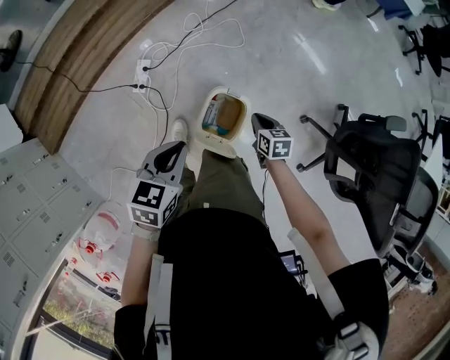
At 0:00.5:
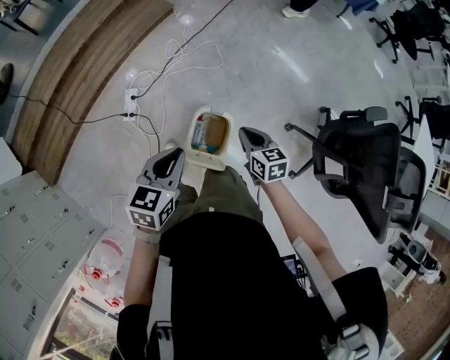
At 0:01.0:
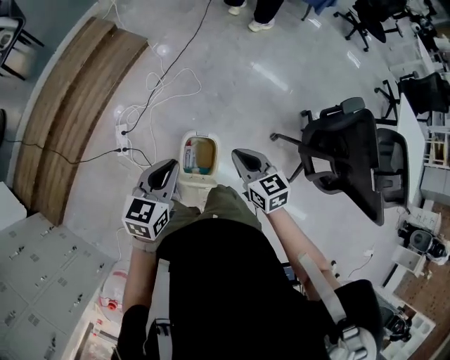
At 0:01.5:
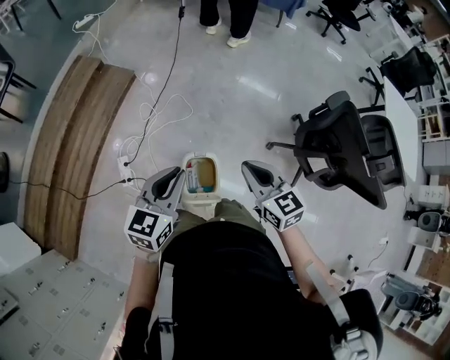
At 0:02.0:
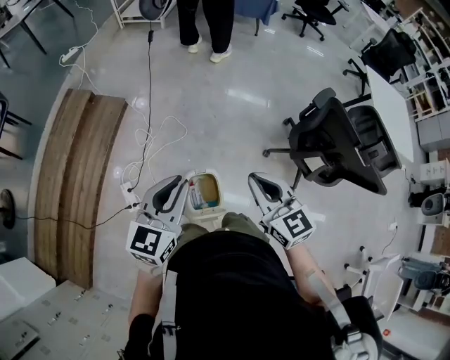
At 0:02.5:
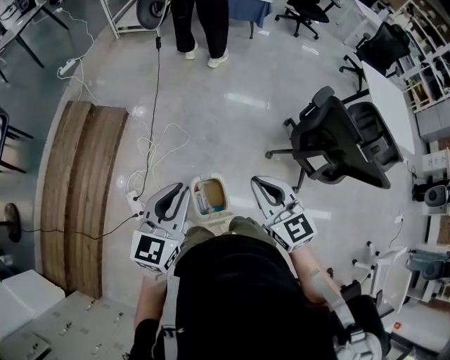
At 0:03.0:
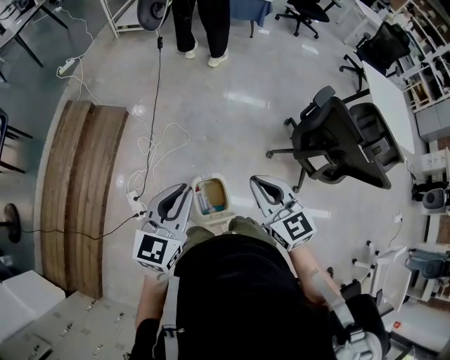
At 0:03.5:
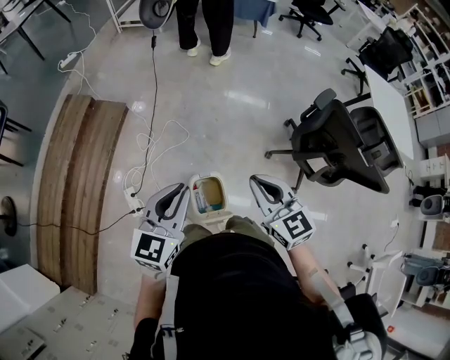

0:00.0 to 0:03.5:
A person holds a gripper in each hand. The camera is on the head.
0:00.0 to 0:02.0: The right gripper moves upward, some 40 cm, and points its fingers some 30 degrees further upward; the left gripper is displaced upward by approximately 25 cm, and rotates some 40 degrees.
0:02.0 to 0:03.5: The grippers stay close to where they were, moving slightly.

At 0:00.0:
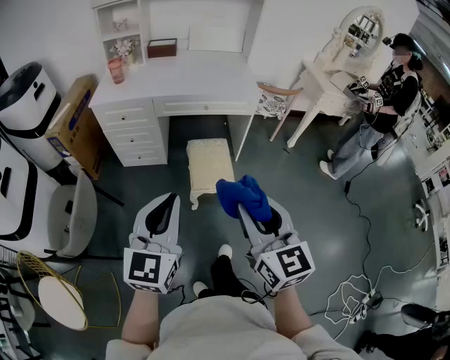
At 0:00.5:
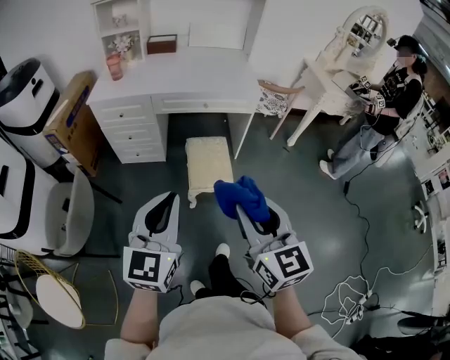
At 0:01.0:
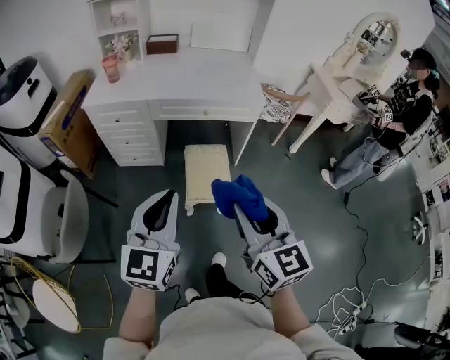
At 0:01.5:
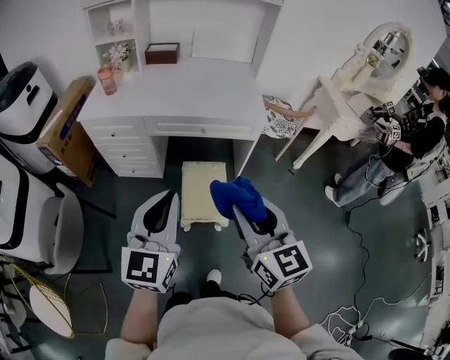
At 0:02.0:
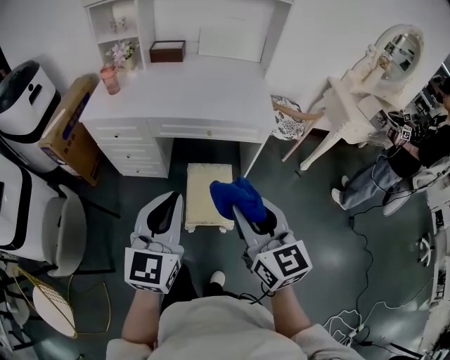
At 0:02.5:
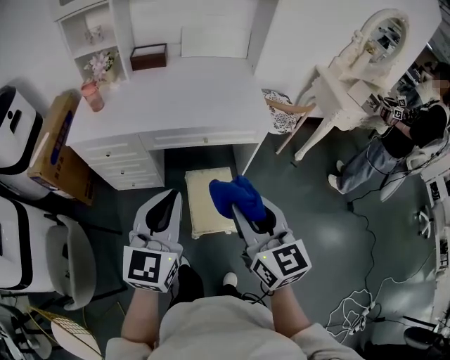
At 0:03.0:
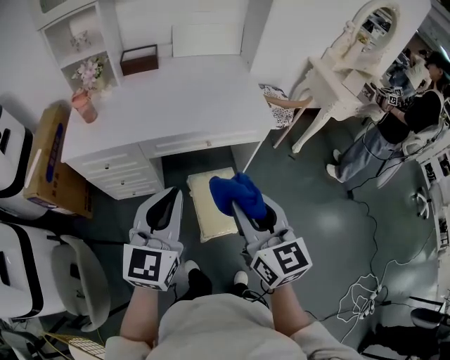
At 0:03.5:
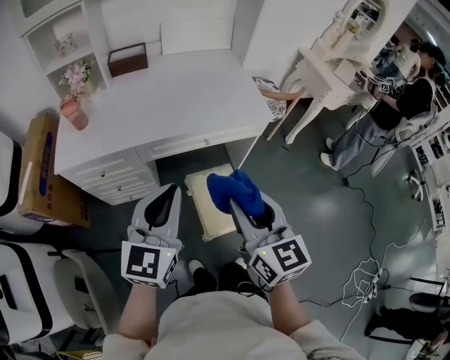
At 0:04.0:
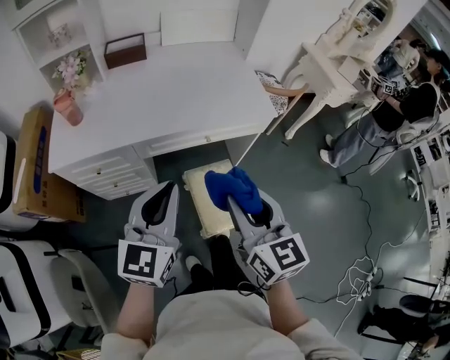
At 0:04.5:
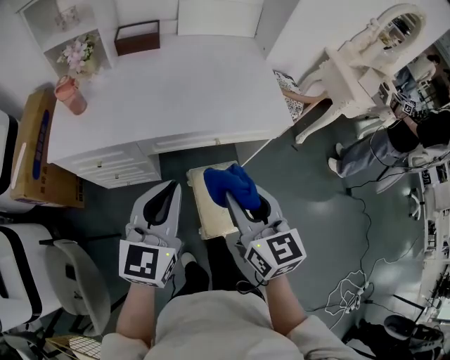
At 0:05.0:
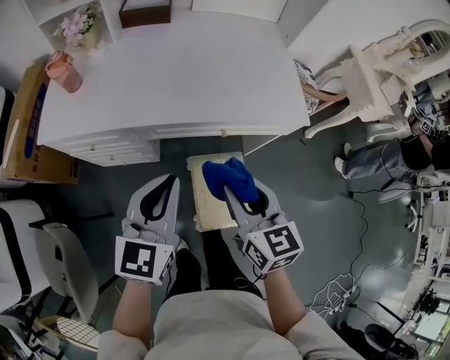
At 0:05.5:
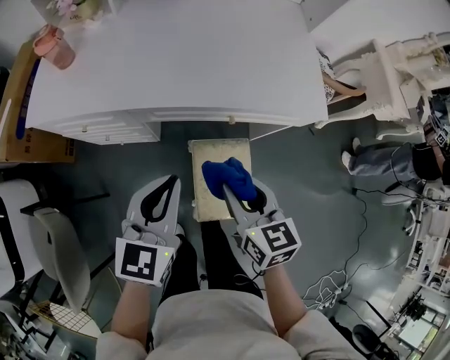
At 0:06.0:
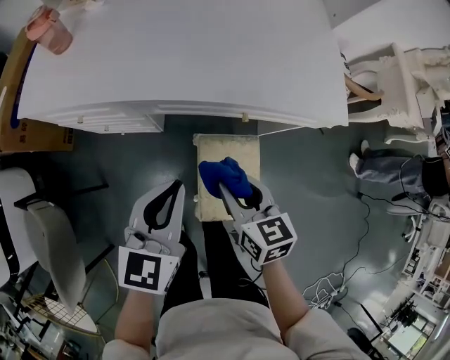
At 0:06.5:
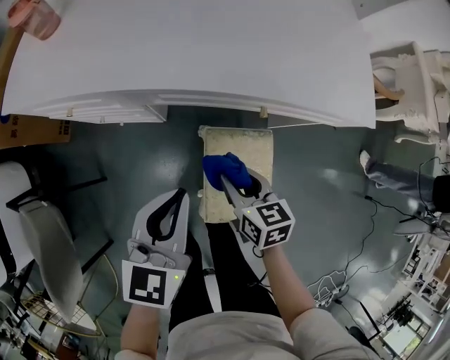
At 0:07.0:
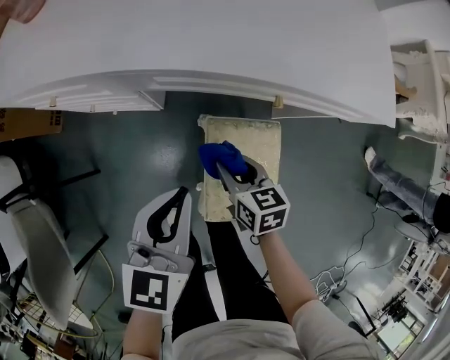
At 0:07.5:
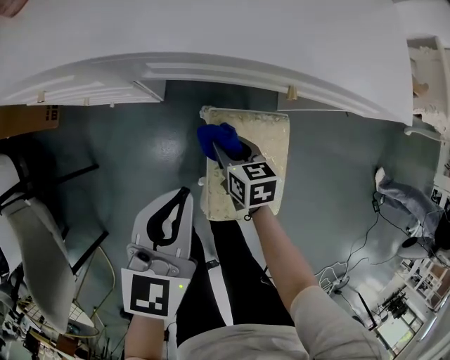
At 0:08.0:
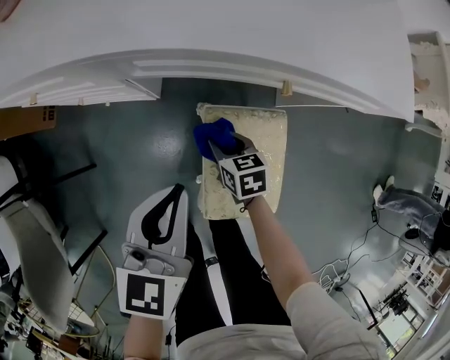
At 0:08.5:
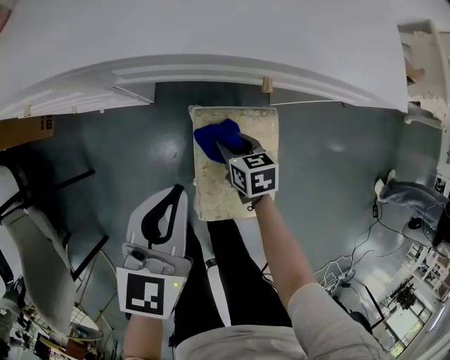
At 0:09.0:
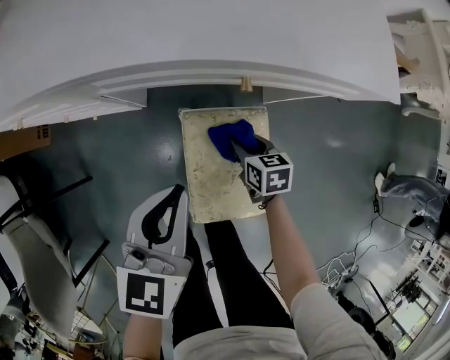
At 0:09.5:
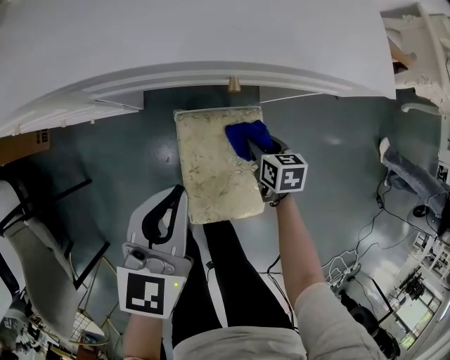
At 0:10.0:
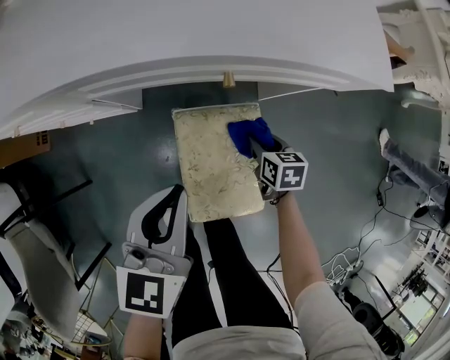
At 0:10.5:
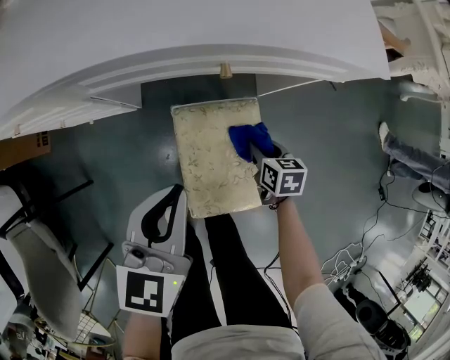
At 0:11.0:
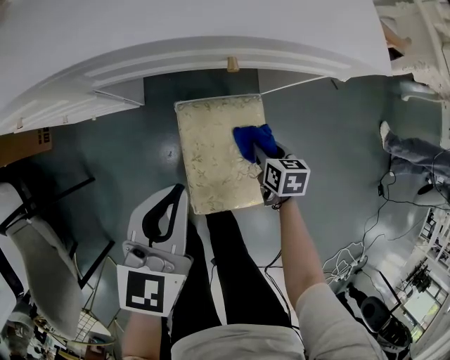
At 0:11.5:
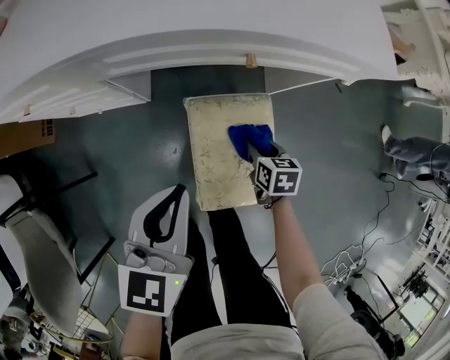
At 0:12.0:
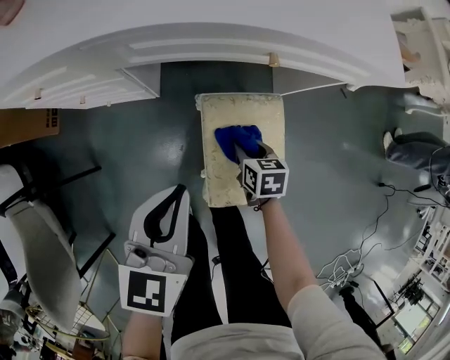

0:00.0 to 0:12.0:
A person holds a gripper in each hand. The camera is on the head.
0:00.0 to 0:02.0: Both grippers move forward, about 25 cm.
0:02.0 to 0:04.0: The two grippers go some 20 cm forward and to the left.
0:04.0 to 0:06.0: Both grippers move downward and forward, some 25 cm. The left gripper changes its angle by some 30 degrees, while the right gripper swivels about 30 degrees.
0:06.0 to 0:08.0: The left gripper is displaced downward by approximately 15 cm, while the right gripper travels downward by some 30 cm.
0:08.0 to 0:10.0: The right gripper shifts approximately 20 cm to the right, while the left gripper heads to the right, covering about 10 cm.
0:10.0 to 0:12.0: The two grippers go approximately 10 cm to the left and backward.

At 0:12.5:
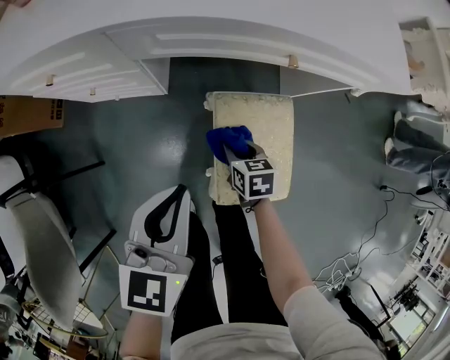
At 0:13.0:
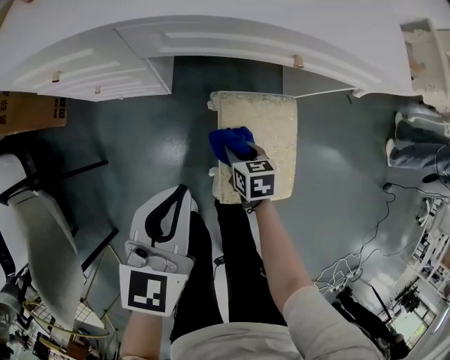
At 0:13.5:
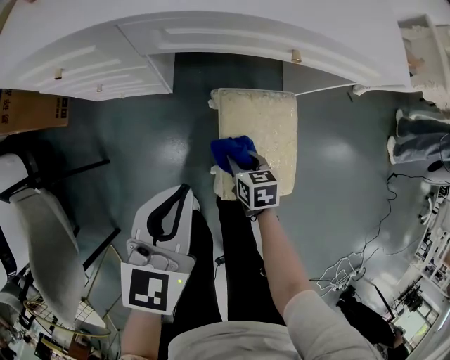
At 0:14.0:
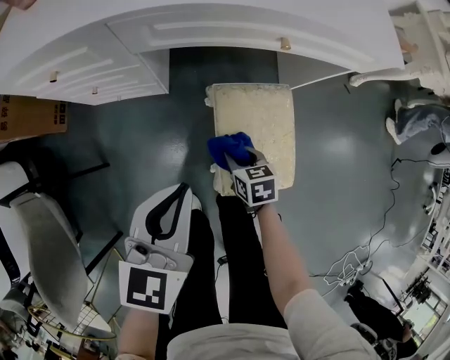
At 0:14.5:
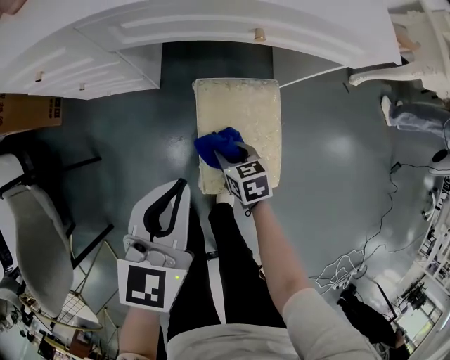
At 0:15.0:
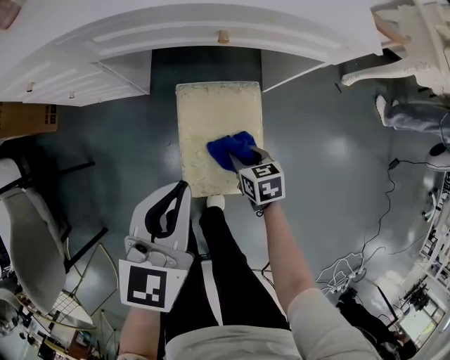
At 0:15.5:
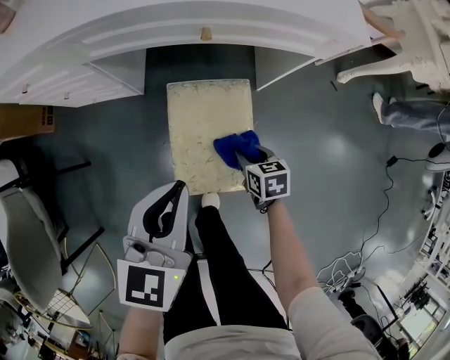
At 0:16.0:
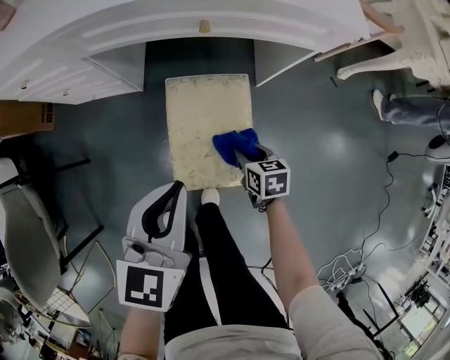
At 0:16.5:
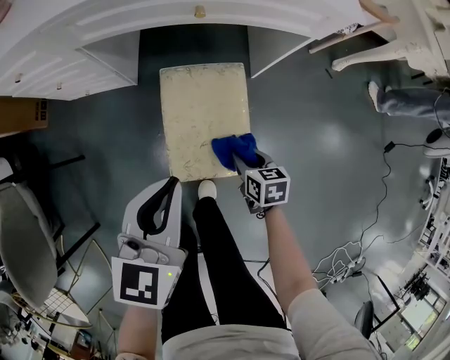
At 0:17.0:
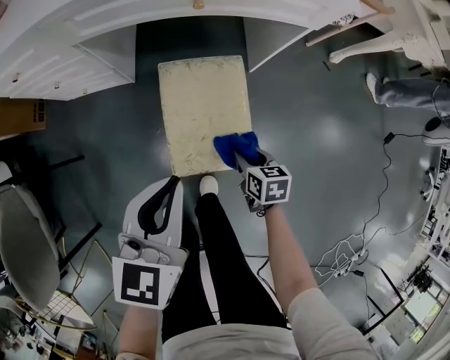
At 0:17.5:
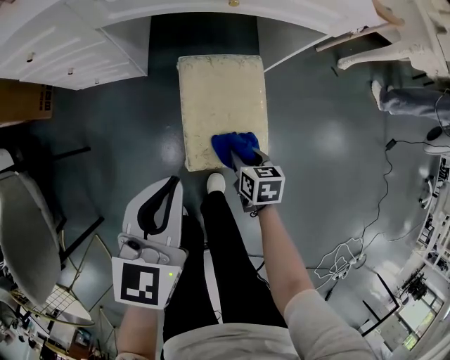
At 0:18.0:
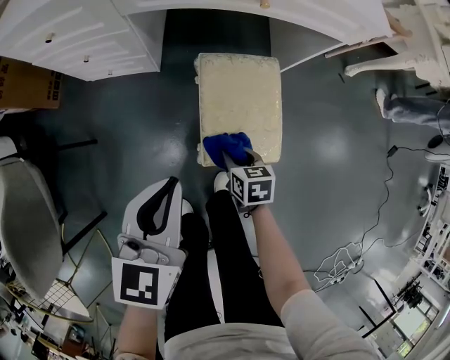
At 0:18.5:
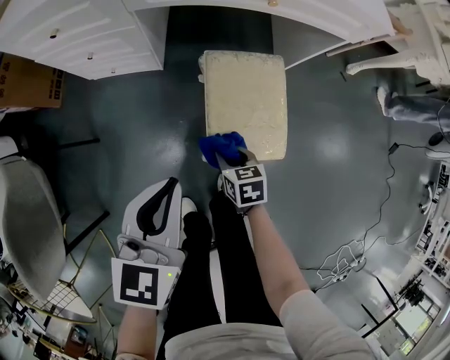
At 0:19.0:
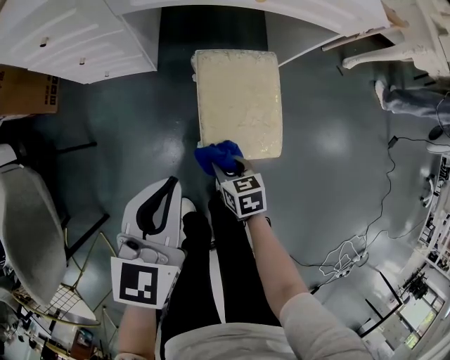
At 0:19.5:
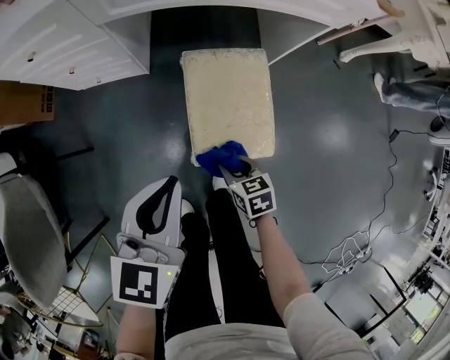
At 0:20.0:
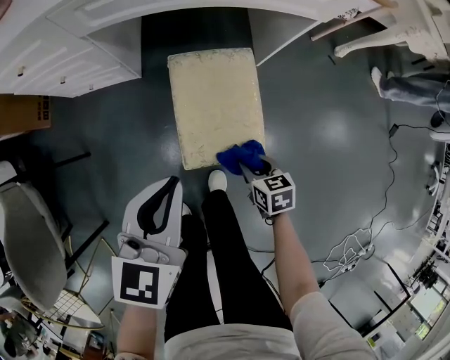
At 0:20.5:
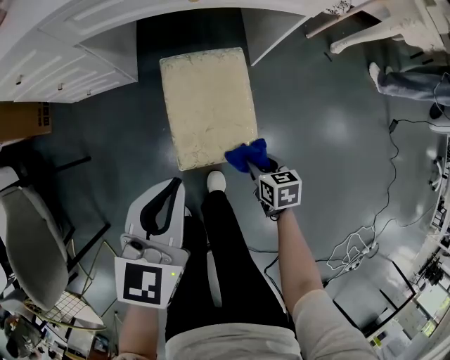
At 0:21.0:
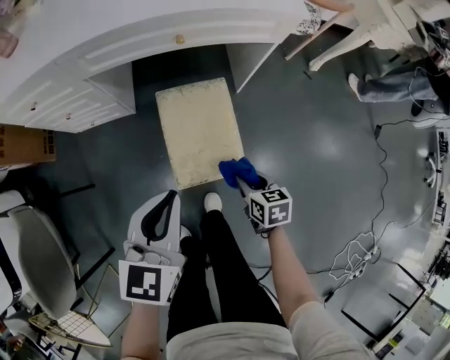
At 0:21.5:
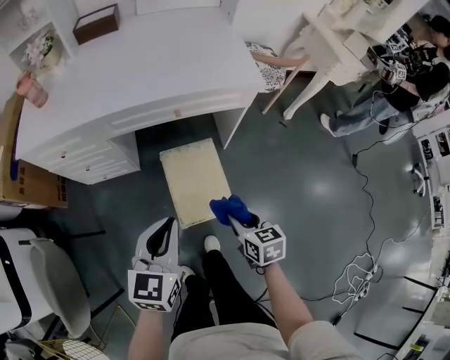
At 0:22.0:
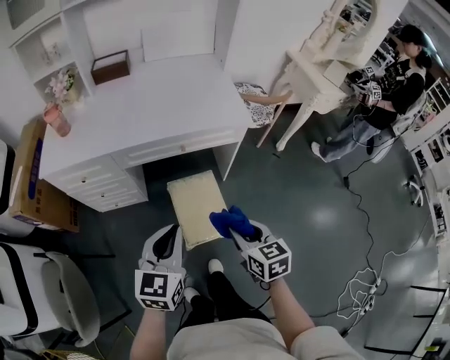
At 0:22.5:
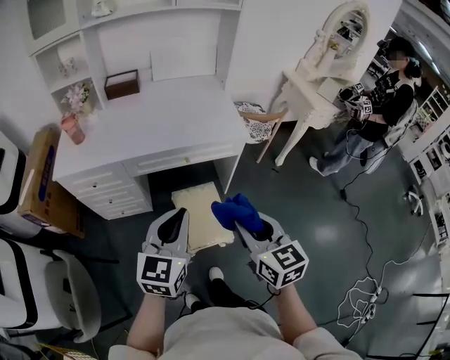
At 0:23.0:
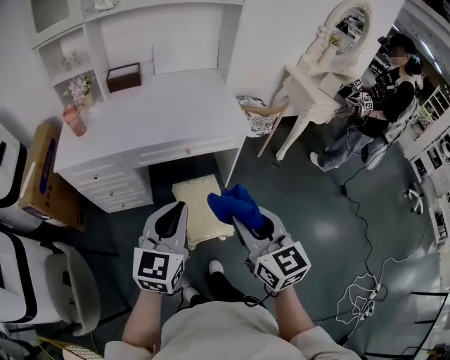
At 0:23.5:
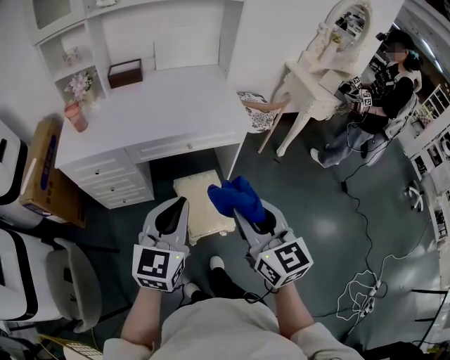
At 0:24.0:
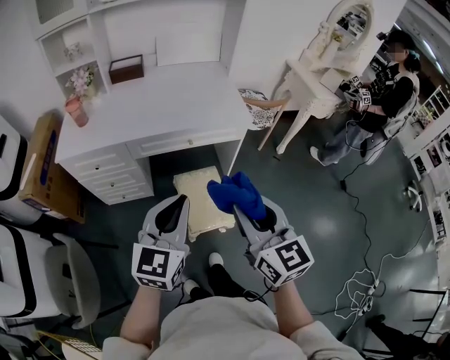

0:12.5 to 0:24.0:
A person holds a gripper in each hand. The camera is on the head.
0:12.5 to 0:14.5: The left gripper is displaced to the right by some 5 cm. Meanwhile the right gripper travels backward by approximately 5 cm.
0:14.5 to 0:16.5: The left gripper shifts roughly 10 cm to the right and backward, while the right gripper moves to the right and backward, approximately 15 cm.
0:16.5 to 0:18.5: The right gripper heads to the left, covering about 20 cm; the left gripper is displaced to the left and backward by some 15 cm.
0:18.5 to 0:20.0: The left gripper goes roughly 10 cm to the right. Meanwhile the right gripper heads to the right, covering about 15 cm.
0:20.0 to 0:22.0: The left gripper shifts approximately 25 cm upward. Meanwhile the right gripper moves upward, about 40 cm, and changes its angle by about 30 degrees.
0:22.0 to 0:24.0: The right gripper travels upward by approximately 20 cm, and rotates some 30 degrees. Meanwhile the left gripper is displaced upward by roughly 10 cm.
